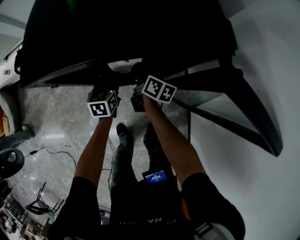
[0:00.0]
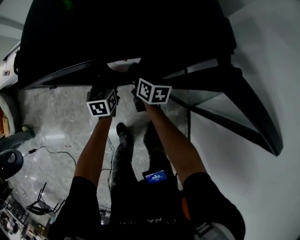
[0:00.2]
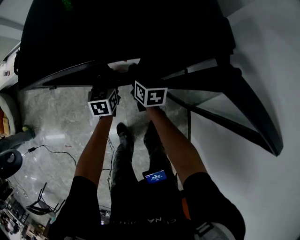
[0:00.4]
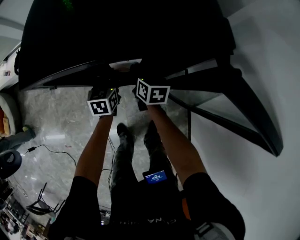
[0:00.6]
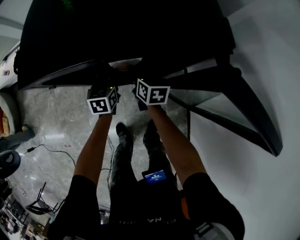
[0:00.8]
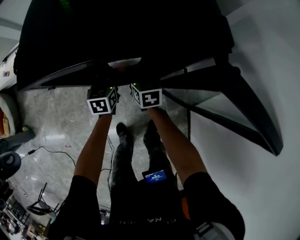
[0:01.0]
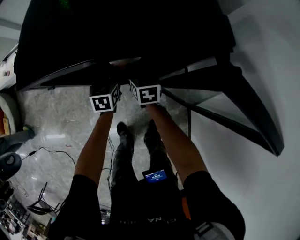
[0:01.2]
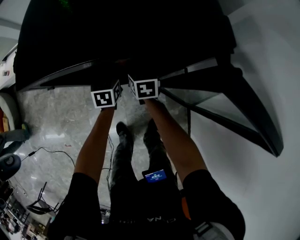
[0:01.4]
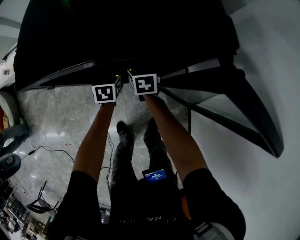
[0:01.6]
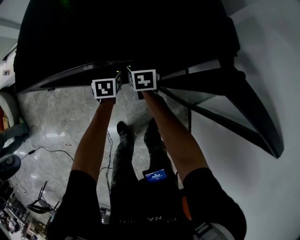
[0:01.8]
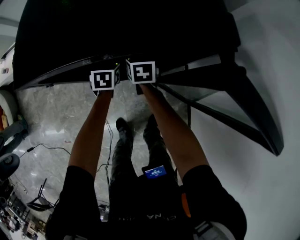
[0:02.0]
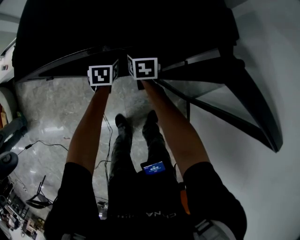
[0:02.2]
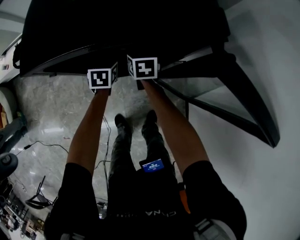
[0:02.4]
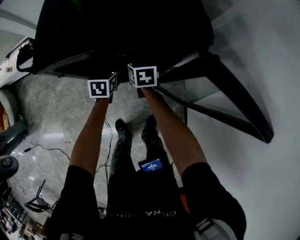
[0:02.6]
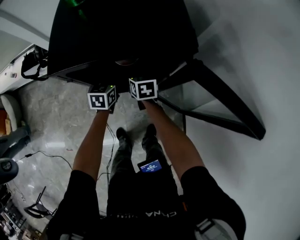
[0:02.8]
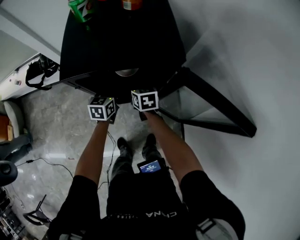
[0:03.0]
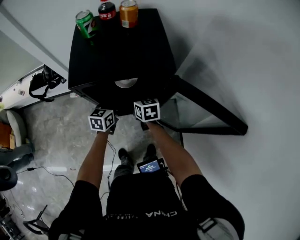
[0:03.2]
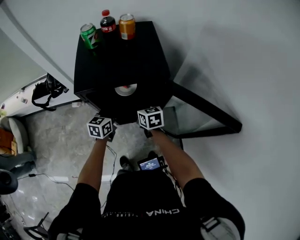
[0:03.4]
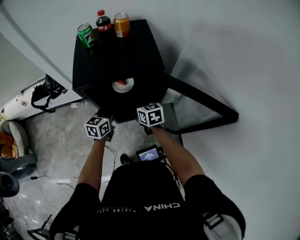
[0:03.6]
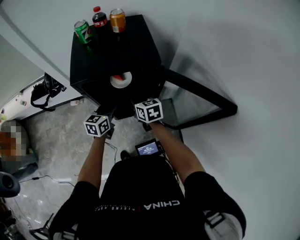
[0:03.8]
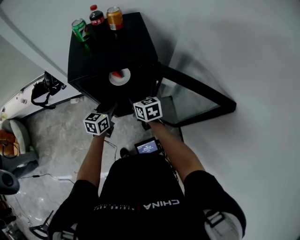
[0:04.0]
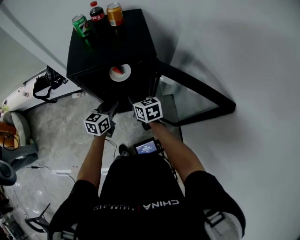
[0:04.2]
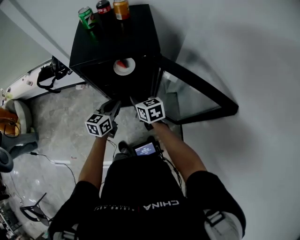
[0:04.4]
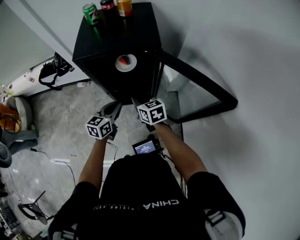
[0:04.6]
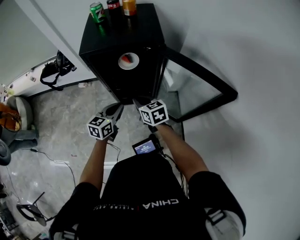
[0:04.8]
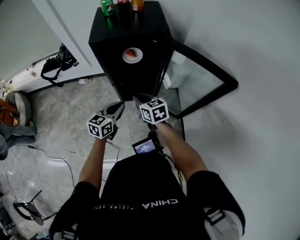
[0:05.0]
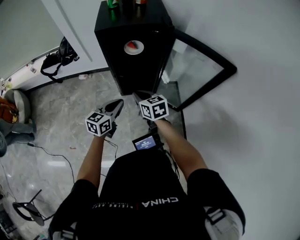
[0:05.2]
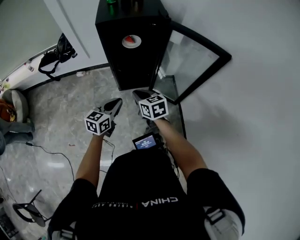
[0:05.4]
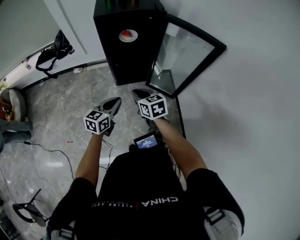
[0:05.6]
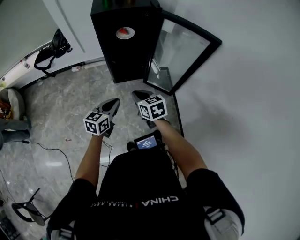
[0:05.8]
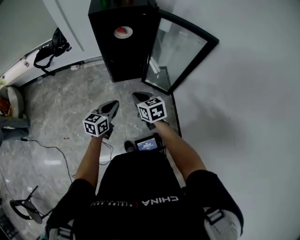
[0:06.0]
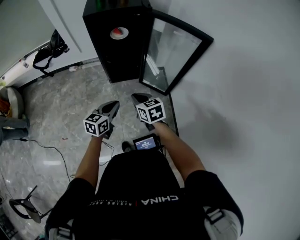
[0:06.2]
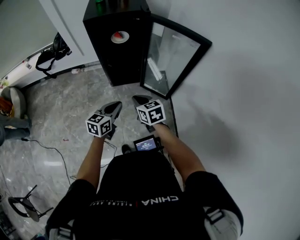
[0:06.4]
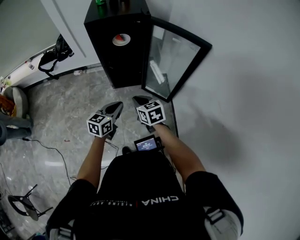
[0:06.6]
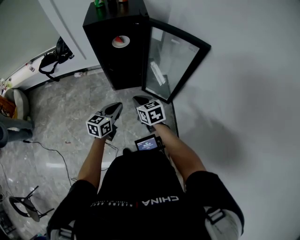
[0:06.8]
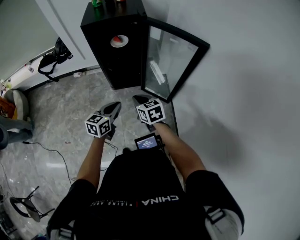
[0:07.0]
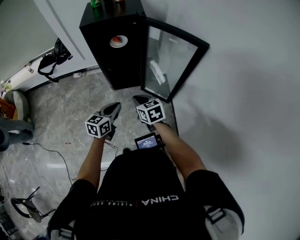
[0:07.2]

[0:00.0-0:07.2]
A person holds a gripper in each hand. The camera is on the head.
0:00.0 to 0:01.4: The right gripper twists some 40 degrees counterclockwise, seen from behind, and opens.
0:01.4 to 0:02.8: The grippers both shift upward by some 5 cm.
0:02.8 to 0:04.4: The grippers both shift backward and upward by about 20 cm. The right gripper closes its fingers.
0:04.4 to 0:05.8: The grippers both shift backward by roughly 35 cm.
0:05.8 to 0:07.2: Both grippers travel together to the right, about 10 cm.

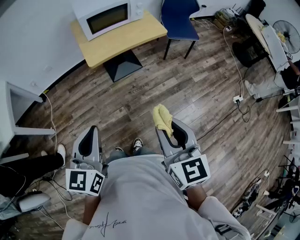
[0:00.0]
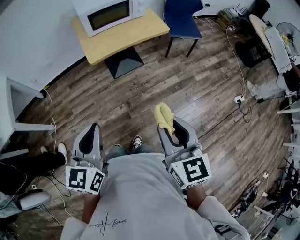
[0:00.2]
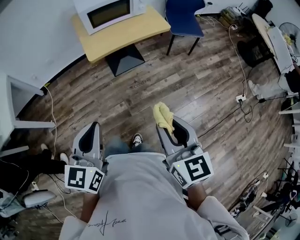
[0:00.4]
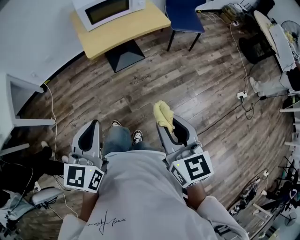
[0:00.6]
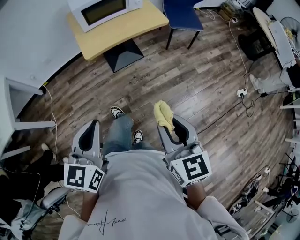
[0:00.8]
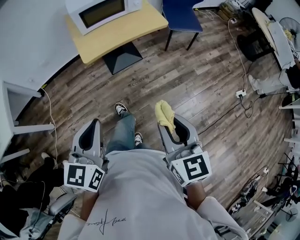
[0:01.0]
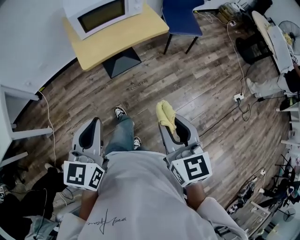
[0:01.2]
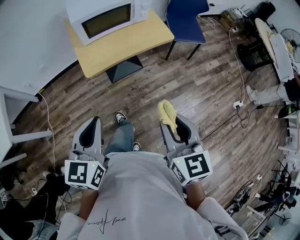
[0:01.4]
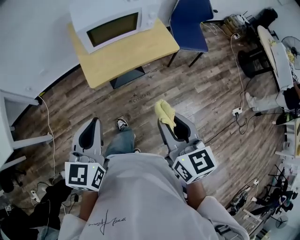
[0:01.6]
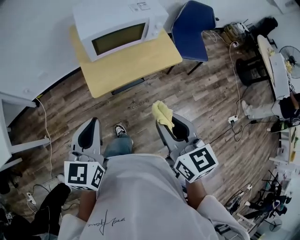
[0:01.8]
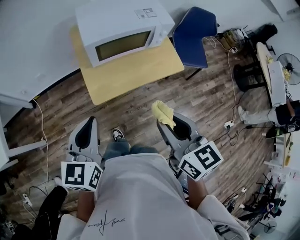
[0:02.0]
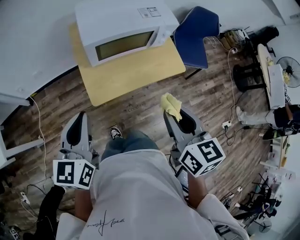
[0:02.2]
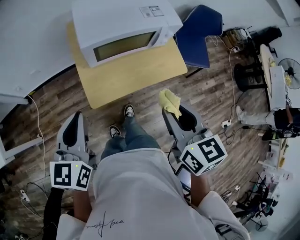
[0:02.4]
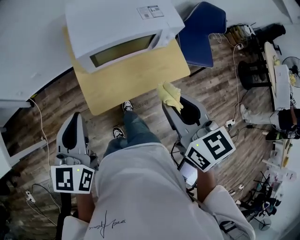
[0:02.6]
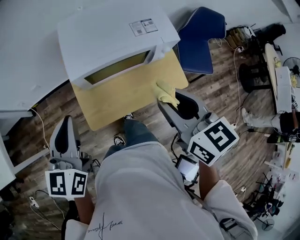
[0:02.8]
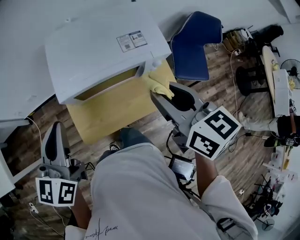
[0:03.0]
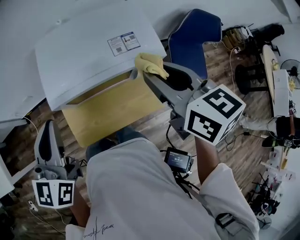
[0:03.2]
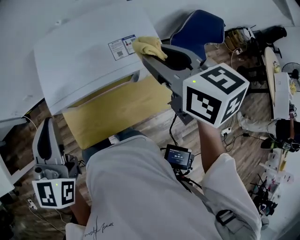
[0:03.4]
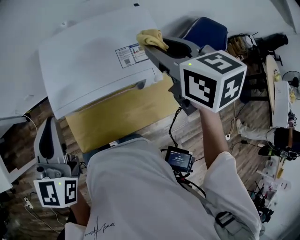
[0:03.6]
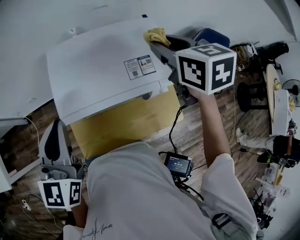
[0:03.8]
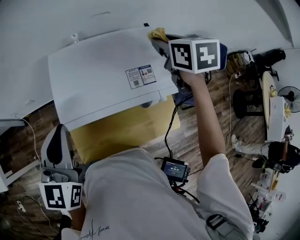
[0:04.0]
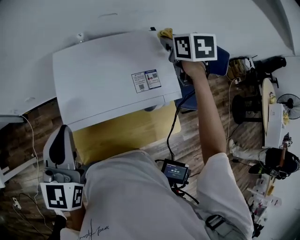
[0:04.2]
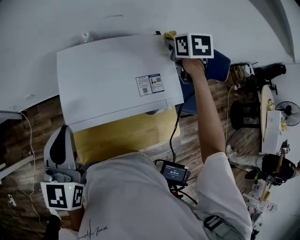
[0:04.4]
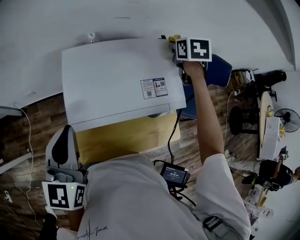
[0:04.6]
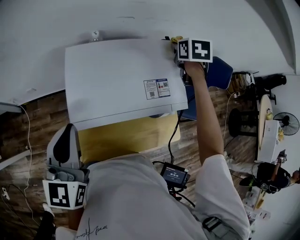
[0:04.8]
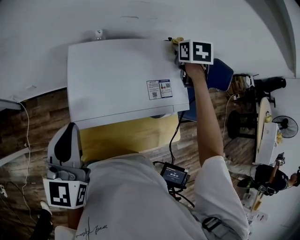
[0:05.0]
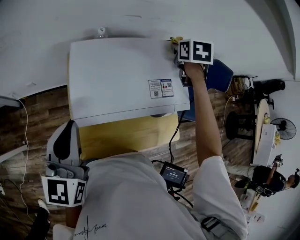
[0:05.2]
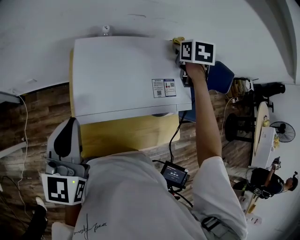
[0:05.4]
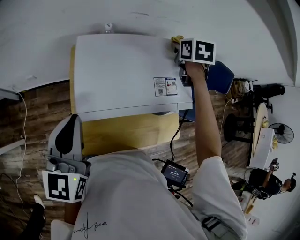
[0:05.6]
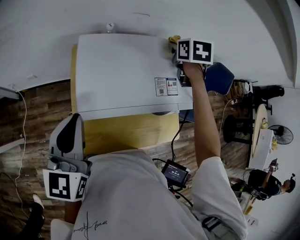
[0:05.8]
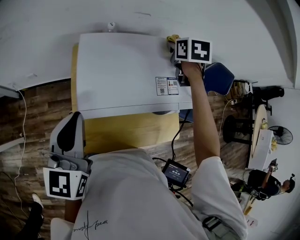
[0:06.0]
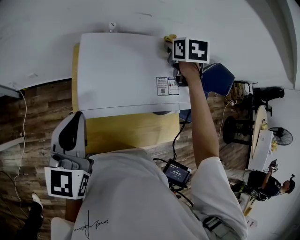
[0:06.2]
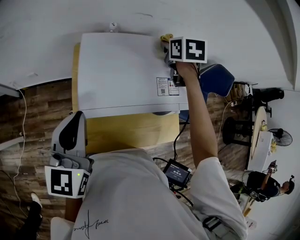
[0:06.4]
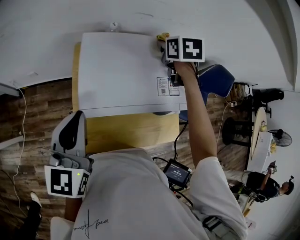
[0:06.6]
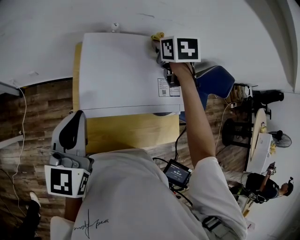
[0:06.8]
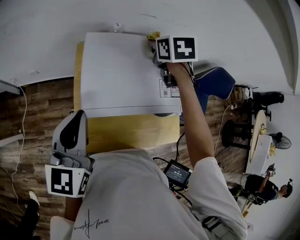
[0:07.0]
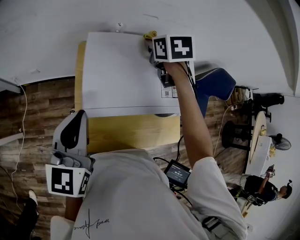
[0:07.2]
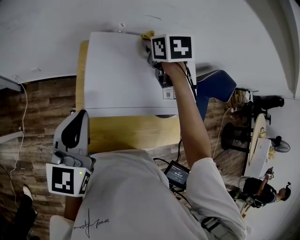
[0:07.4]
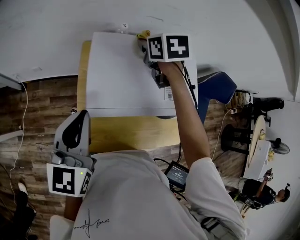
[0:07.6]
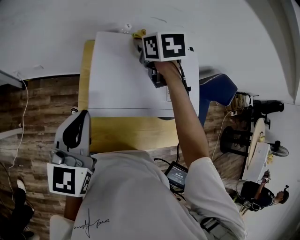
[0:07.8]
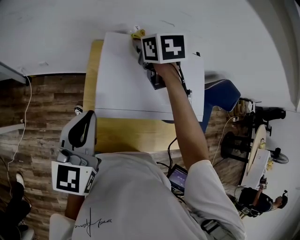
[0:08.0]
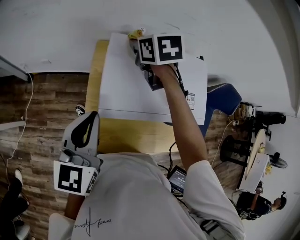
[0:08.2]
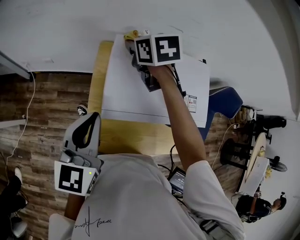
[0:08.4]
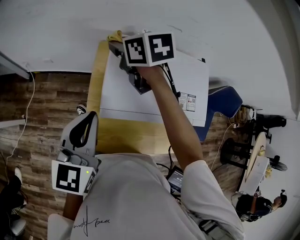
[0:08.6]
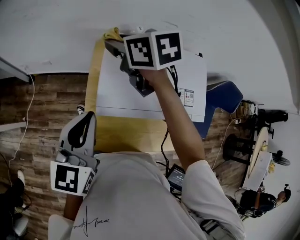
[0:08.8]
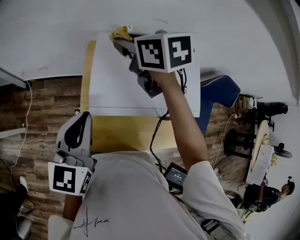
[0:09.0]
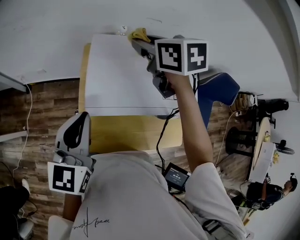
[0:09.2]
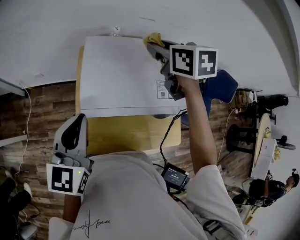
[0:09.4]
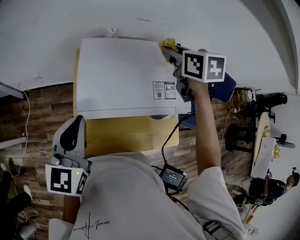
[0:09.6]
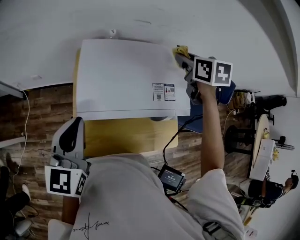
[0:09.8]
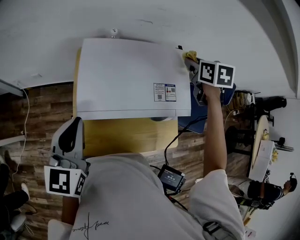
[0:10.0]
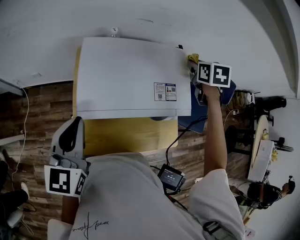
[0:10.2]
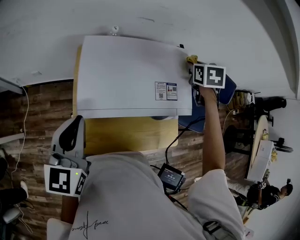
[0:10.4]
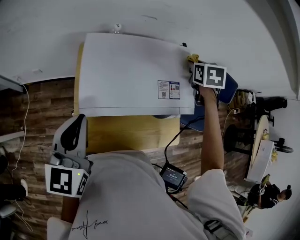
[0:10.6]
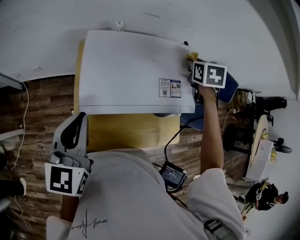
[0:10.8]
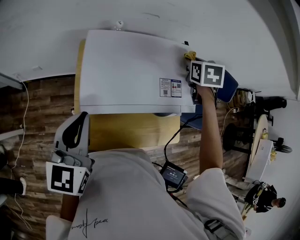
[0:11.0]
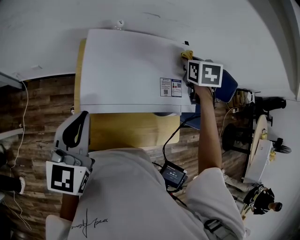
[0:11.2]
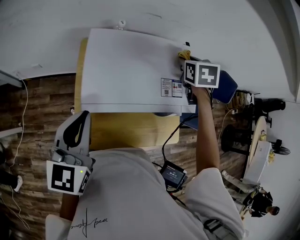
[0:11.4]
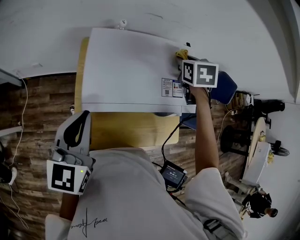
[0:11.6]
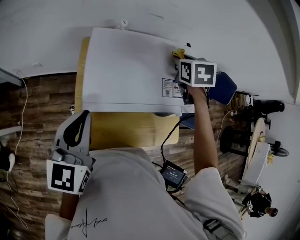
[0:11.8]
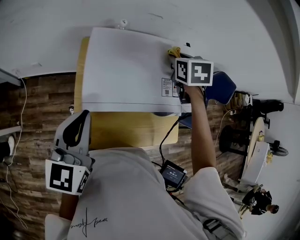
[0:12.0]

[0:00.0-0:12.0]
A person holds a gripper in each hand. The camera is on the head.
0:00.0 to 0:01.6: Both grippers move forward, roughly 25 cm.
0:01.6 to 0:03.0: The two grippers go roughly 40 cm forward.
0:03.0 to 0:04.4: The left gripper goes approximately 10 cm forward; the right gripper goes roughly 35 cm forward, and swivels about 30 degrees.
0:04.4 to 0:06.0: The right gripper heads to the left, covering roughly 10 cm.
0:06.0 to 0:07.6: The right gripper goes approximately 15 cm to the left.
0:07.6 to 0:09.0: The right gripper travels to the left and upward by some 15 cm, and changes its angle by roughly 20 degrees.
0:09.0 to 0:10.4: The right gripper shifts by about 35 cm, and rotates about 40 degrees.
0:10.4 to 0:12.0: The right gripper is displaced to the left by roughly 10 cm.

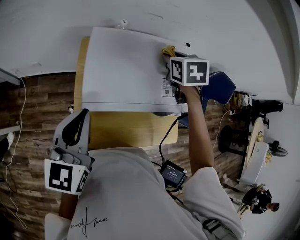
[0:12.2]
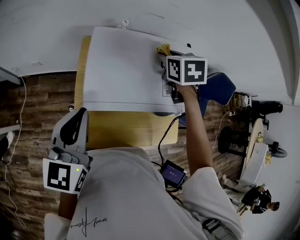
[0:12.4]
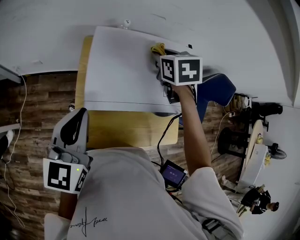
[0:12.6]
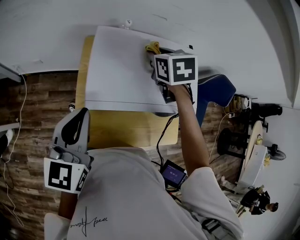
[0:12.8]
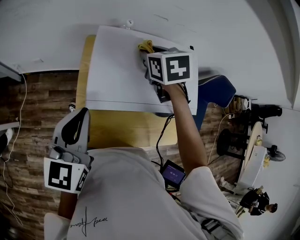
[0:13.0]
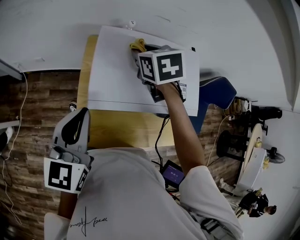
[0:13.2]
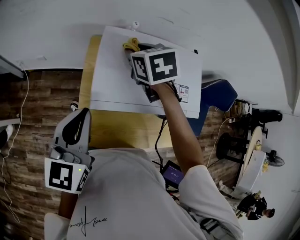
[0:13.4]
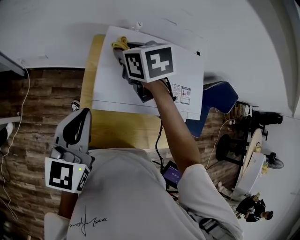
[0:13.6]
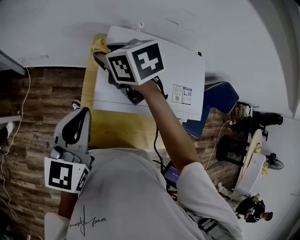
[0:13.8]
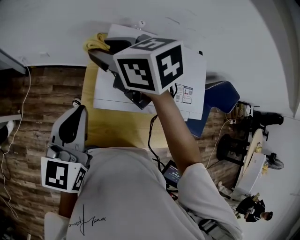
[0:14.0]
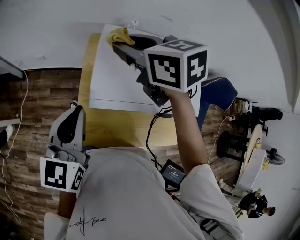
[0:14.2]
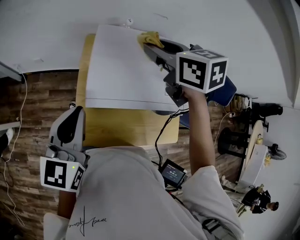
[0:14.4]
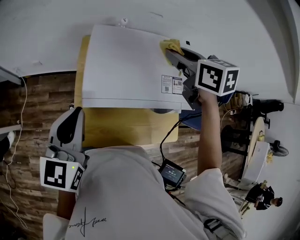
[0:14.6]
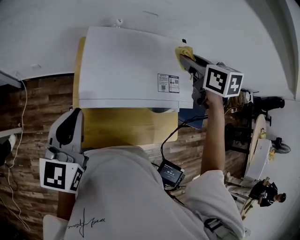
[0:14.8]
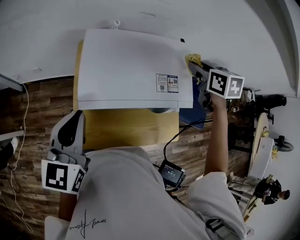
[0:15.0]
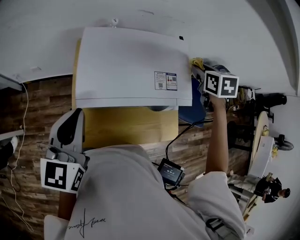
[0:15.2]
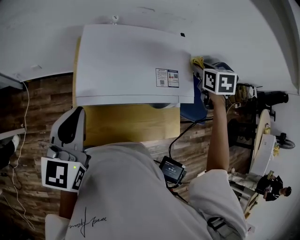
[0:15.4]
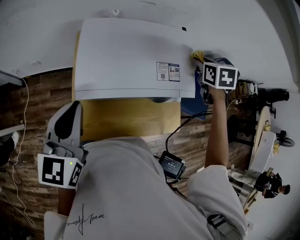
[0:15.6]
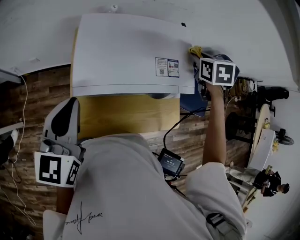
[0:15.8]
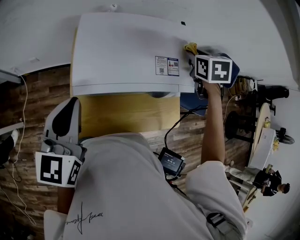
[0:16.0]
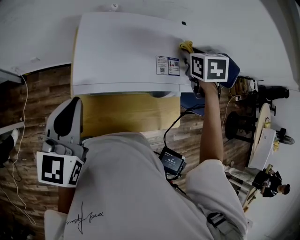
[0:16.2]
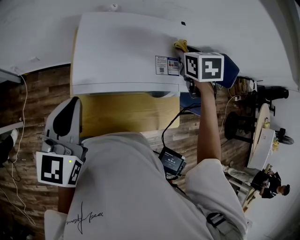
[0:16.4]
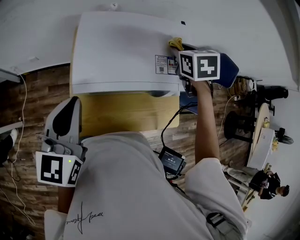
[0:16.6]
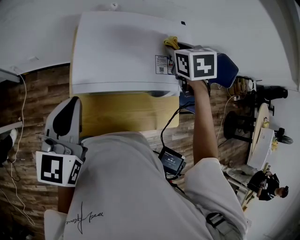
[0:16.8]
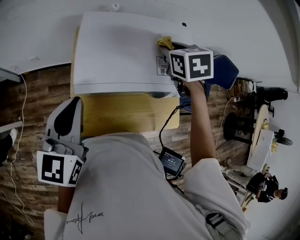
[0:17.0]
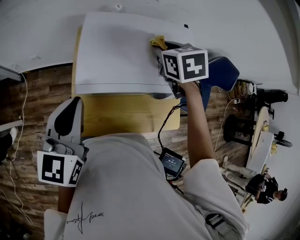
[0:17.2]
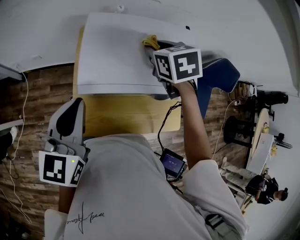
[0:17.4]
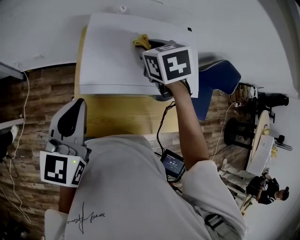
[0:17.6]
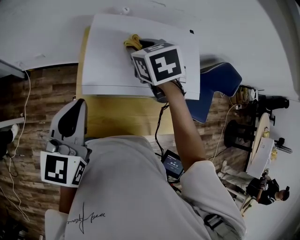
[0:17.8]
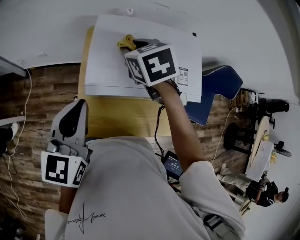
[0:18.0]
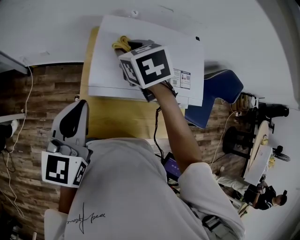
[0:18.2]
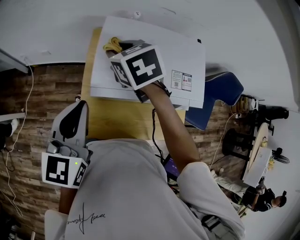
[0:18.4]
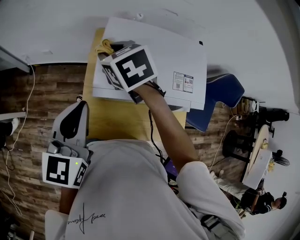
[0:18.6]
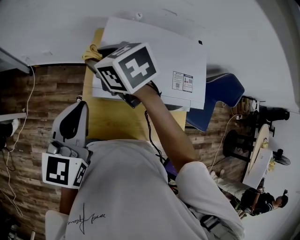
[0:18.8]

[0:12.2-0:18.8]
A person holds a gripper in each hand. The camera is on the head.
0:12.2 to 0:13.8: The right gripper shifts by about 30 cm, and turns by approximately 40 degrees.
0:13.8 to 0:15.4: The right gripper reaches some 5 cm upward, then returns, and swivels roughly 40 degrees.
0:15.4 to 0:17.2: The right gripper heads to the left, covering some 20 cm.
0:17.2 to 0:18.8: The right gripper heads to the left, covering roughly 25 cm, and changes its angle by some 30 degrees.
